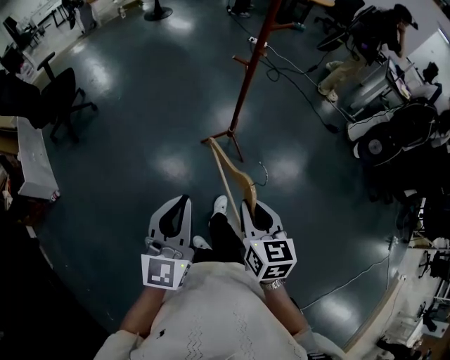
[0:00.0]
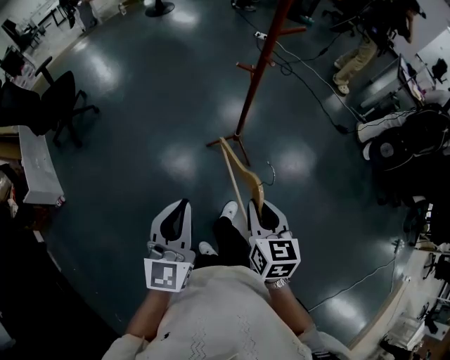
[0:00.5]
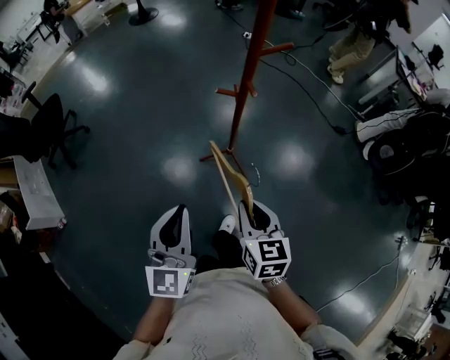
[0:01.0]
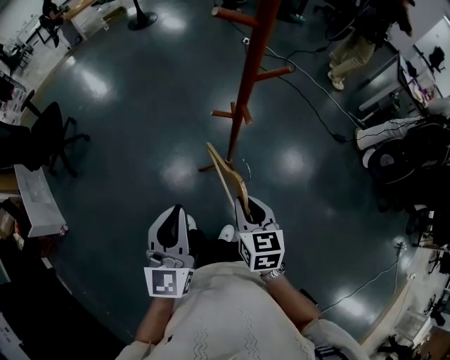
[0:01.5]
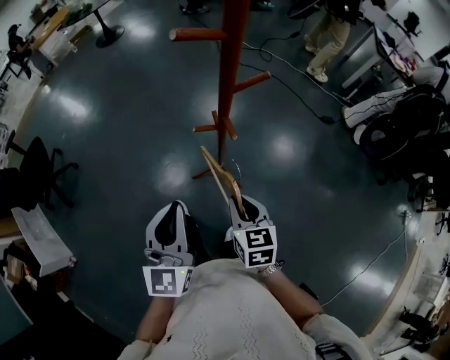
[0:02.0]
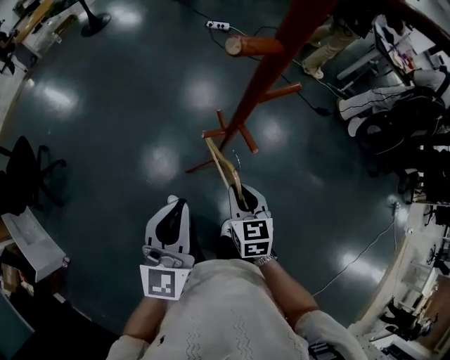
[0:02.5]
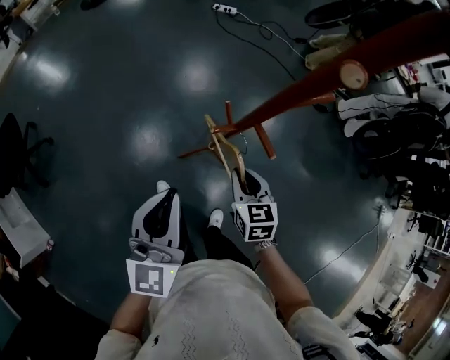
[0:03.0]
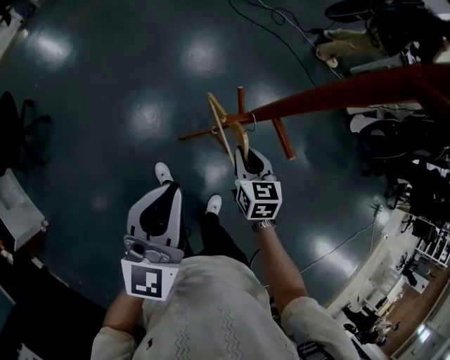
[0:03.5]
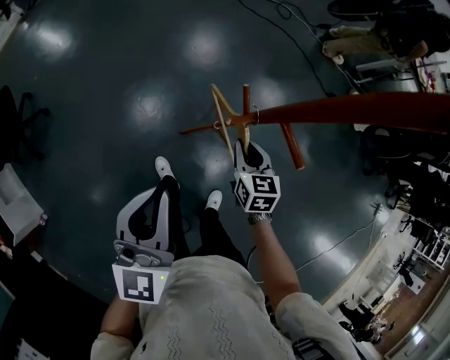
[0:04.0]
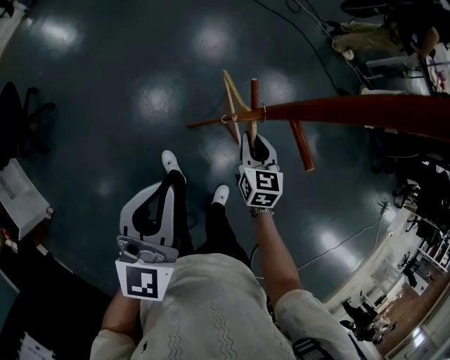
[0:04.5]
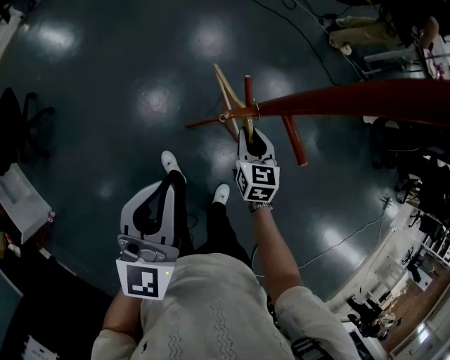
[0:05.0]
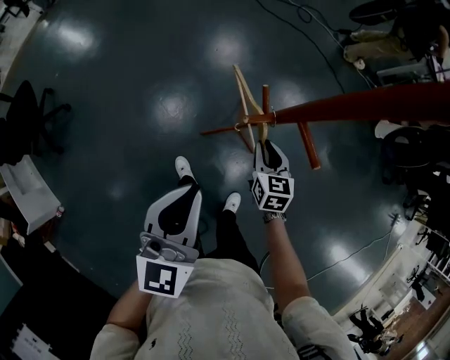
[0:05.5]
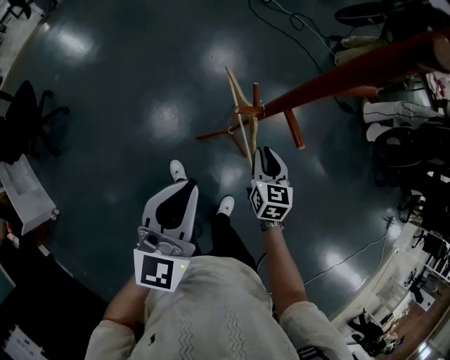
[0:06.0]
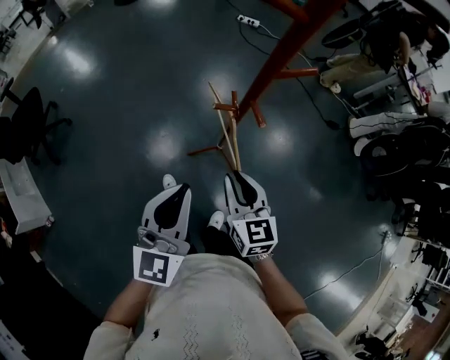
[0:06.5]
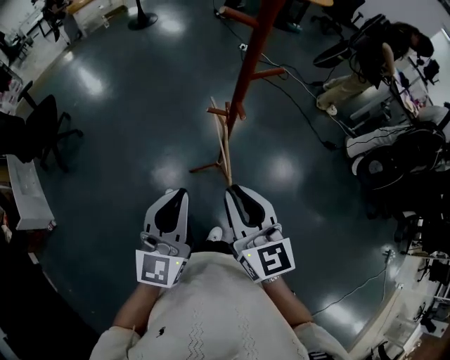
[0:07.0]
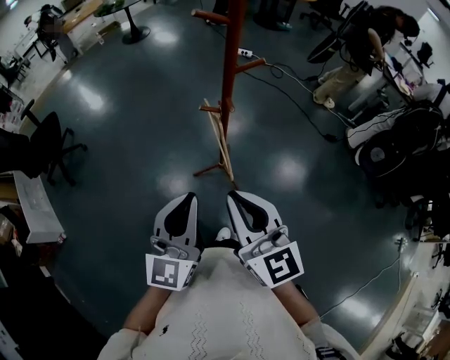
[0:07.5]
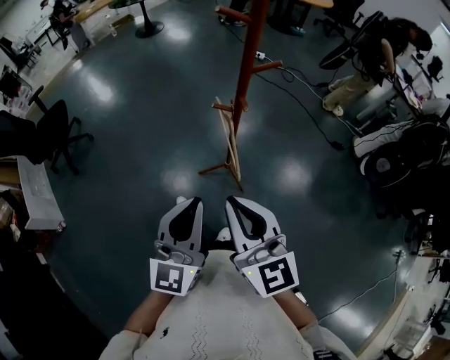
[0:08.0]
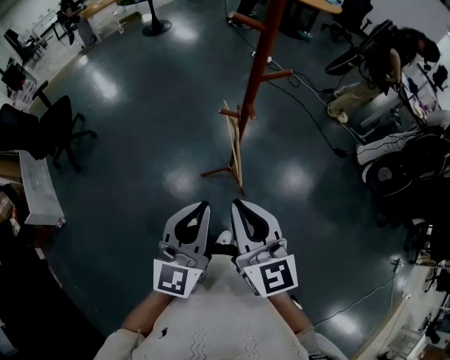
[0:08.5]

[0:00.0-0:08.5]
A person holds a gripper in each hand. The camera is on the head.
0:00.0 to 0:02.0: Both grippers move forward, approximately 40 cm.
0:02.0 to 0:04.0: The left gripper goes roughly 15 cm forward, to the left and downward, while the right gripper moves forward and downward, some 25 cm.
0:04.0 to 0:06.5: The right gripper moves upward and backward, about 20 cm; the left gripper travels backward and to the right by about 15 cm.
0:06.5 to 0:08.5: The left gripper shifts approximately 15 cm backward and upward; the right gripper travels upward and backward by some 20 cm, and turns by roughly 20 degrees.

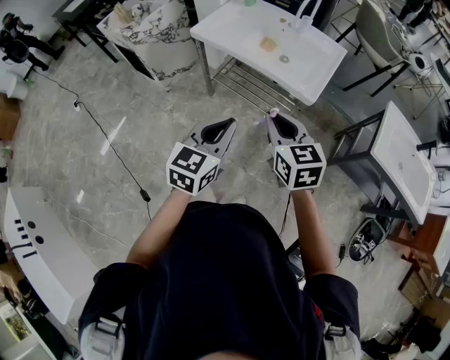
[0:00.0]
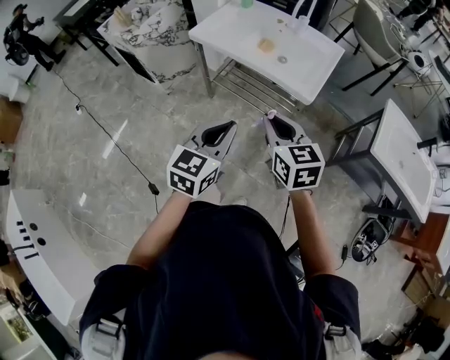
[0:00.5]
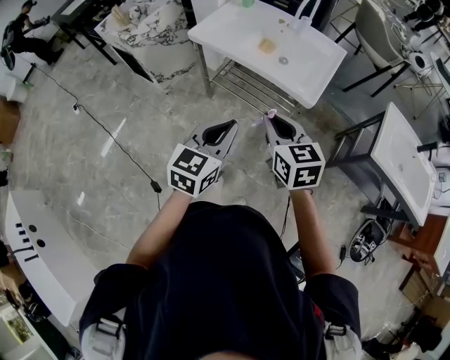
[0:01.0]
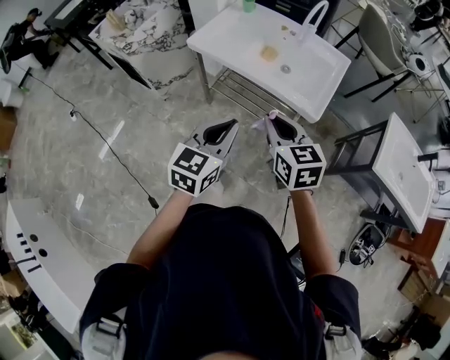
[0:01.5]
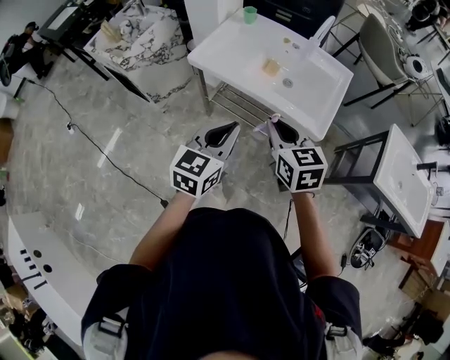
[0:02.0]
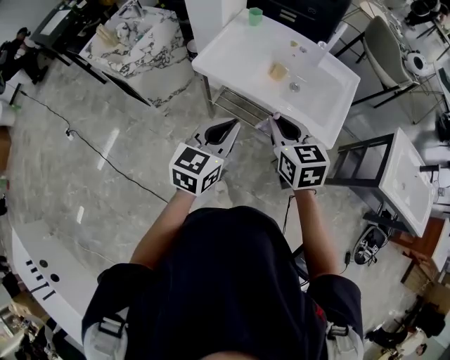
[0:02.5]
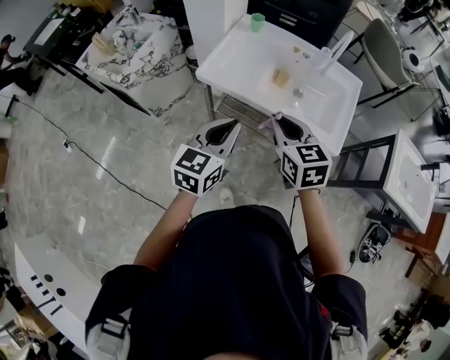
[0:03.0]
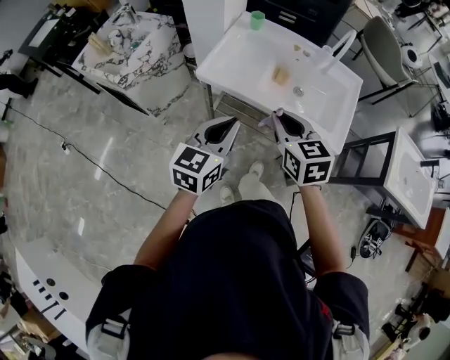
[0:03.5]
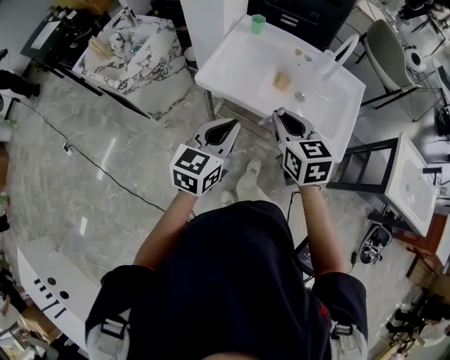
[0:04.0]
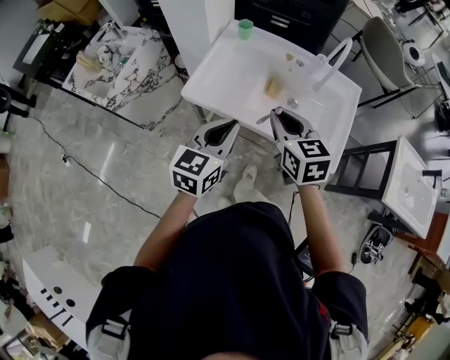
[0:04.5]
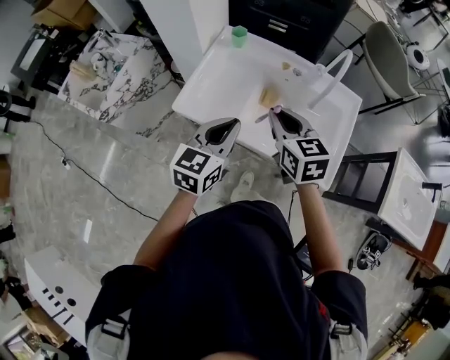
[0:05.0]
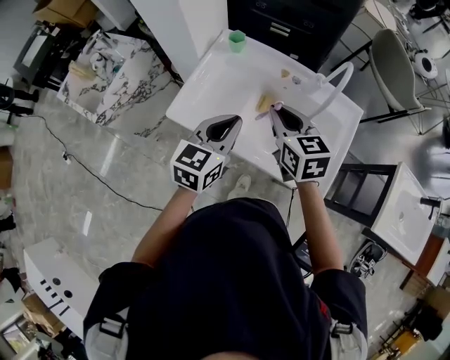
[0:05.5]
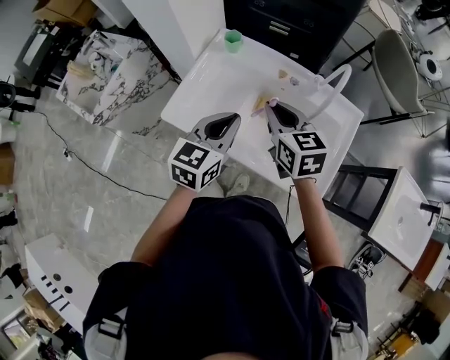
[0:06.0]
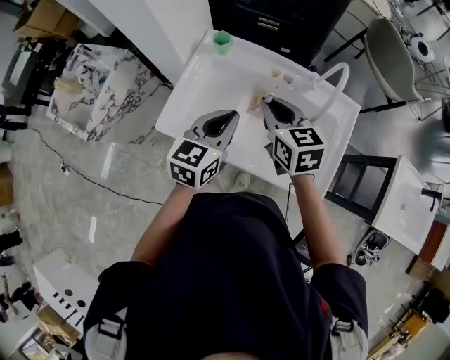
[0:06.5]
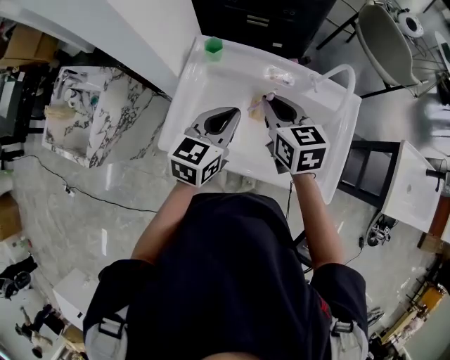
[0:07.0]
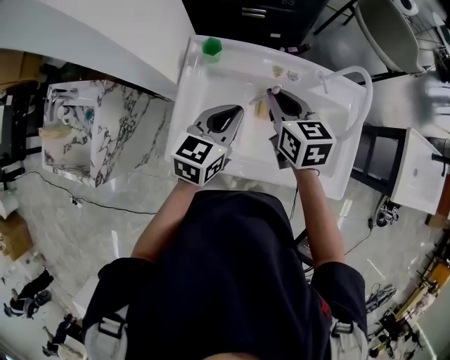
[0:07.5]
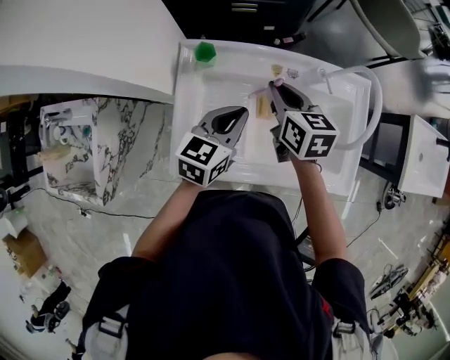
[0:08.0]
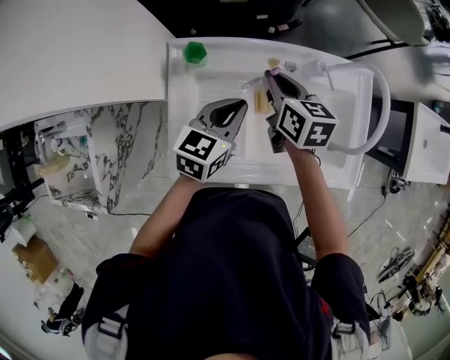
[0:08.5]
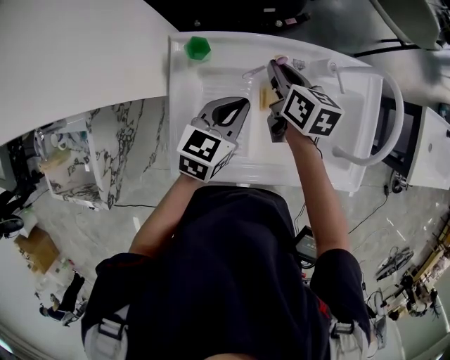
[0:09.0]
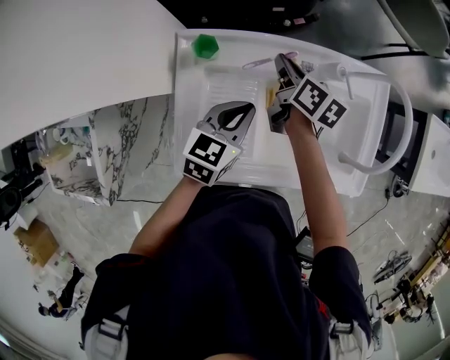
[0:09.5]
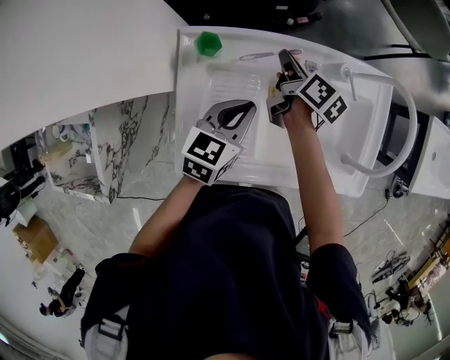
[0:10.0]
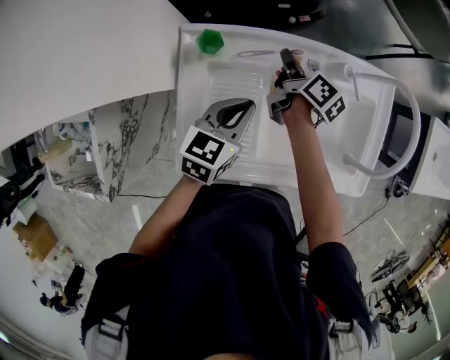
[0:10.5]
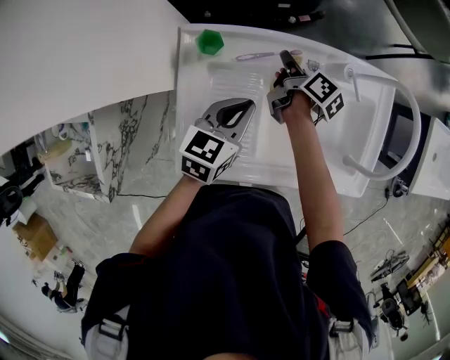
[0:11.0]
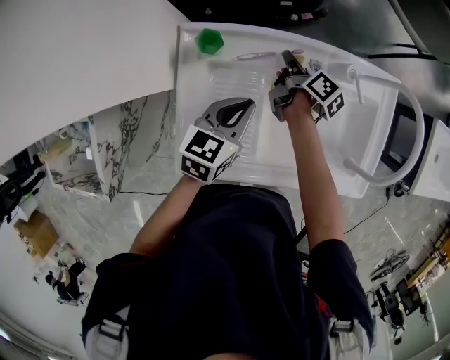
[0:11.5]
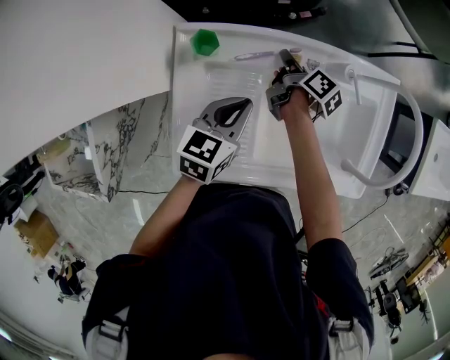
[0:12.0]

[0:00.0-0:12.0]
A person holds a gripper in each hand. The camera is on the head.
0:00.0 to 0:02.0: Both grippers travel together forward, about 15 cm.
0:02.0 to 0:04.0: Both grippers travel together forward and to the left, some 15 cm.
0:04.0 to 0:06.0: The right gripper shifts about 25 cm forward; the left gripper moves forward and to the right, roughly 25 cm.
0:06.0 to 0:08.0: The left gripper shifts by approximately 15 cm, and turns by roughly 30 degrees. Meanwhile the right gripper shifts by some 15 cm, and swivels some 30 degrees.
0:08.0 to 0:10.0: The left gripper shifts by some 5 cm, while the right gripper is displaced downward and forward by approximately 15 cm, and twists roughly 40 degrees clockwise, seen from behind.
0:10.0 to 0:12.0: The right gripper goes roughly 5 cm downward.

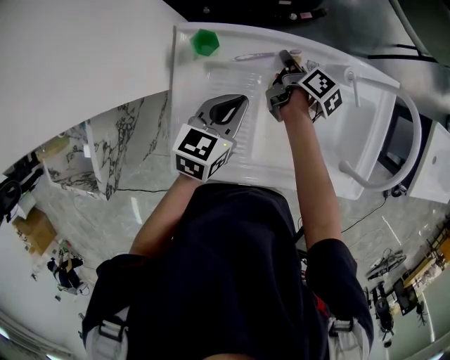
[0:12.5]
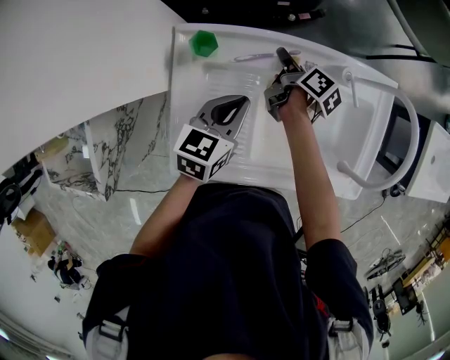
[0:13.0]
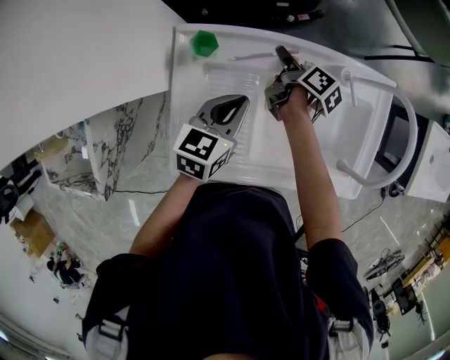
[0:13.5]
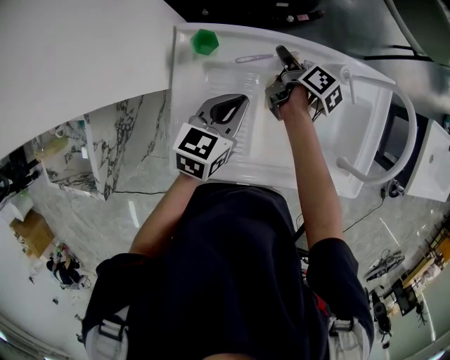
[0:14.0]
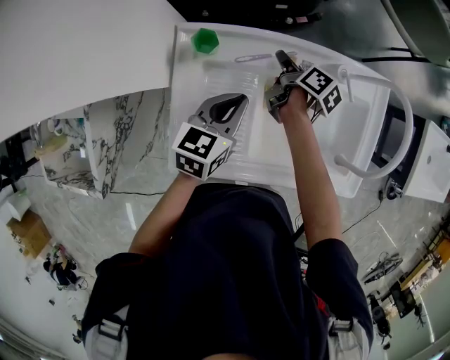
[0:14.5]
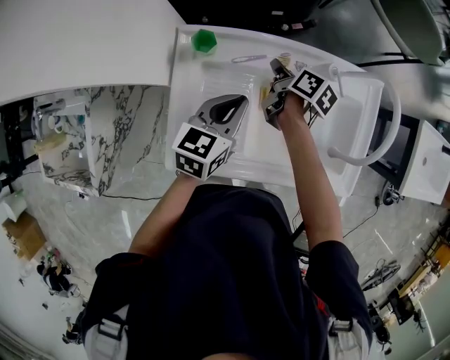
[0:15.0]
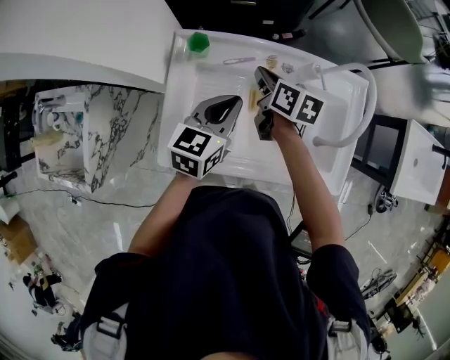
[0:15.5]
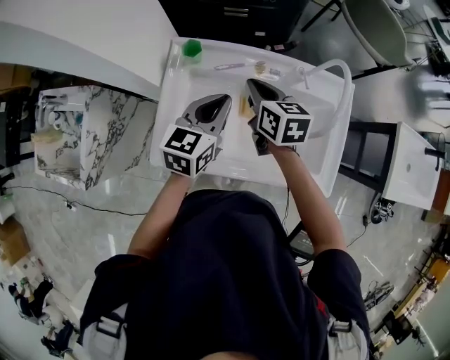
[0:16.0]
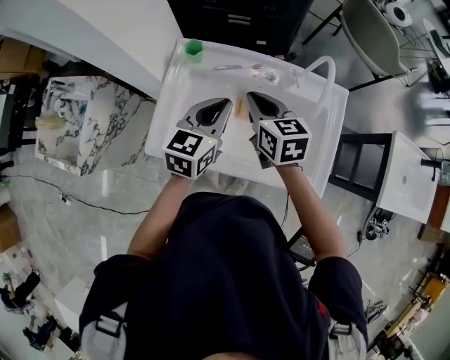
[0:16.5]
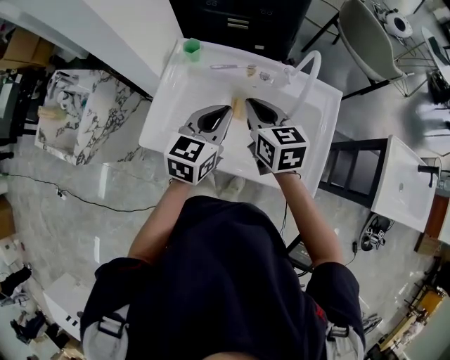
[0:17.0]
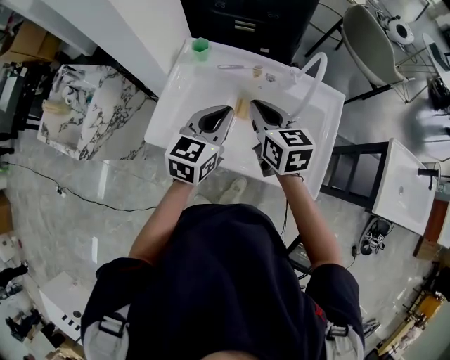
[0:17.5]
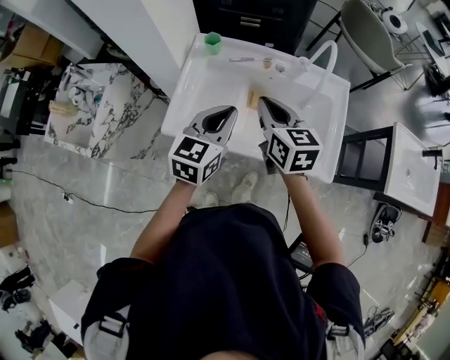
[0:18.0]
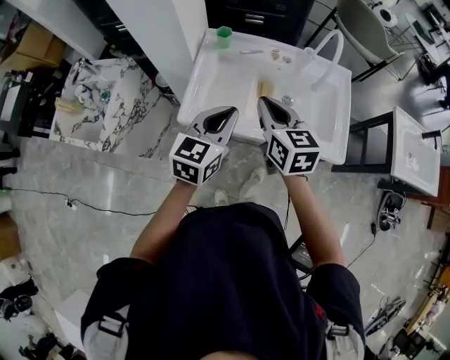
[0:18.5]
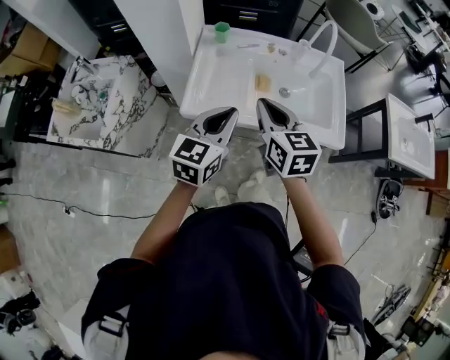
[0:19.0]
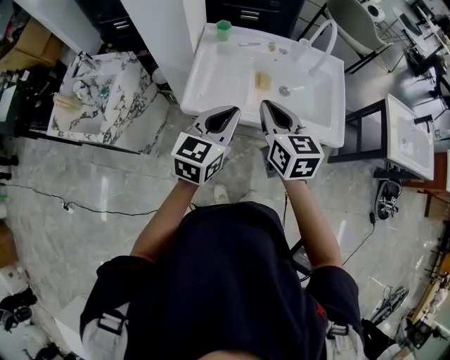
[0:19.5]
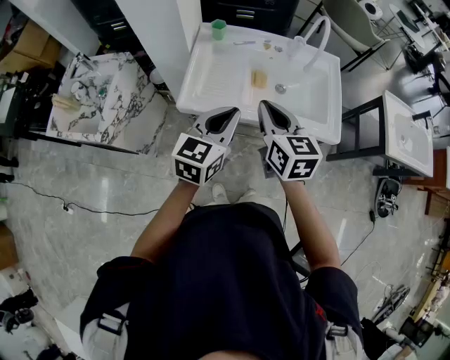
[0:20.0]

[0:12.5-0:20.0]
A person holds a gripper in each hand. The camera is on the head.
0:12.5 to 0:14.5: The right gripper opens up.
0:14.5 to 0:16.5: The left gripper is displaced upward, backward and to the right by roughly 15 cm. Meanwhile the right gripper travels upward and backward by roughly 25 cm, twists roughly 60 degrees counterclockwise, seen from behind, and closes up.
0:16.5 to 0:18.0: The grippers both shift backward by some 10 cm.
0:18.0 to 0:20.0: The grippers both shift backward by approximately 15 cm.
